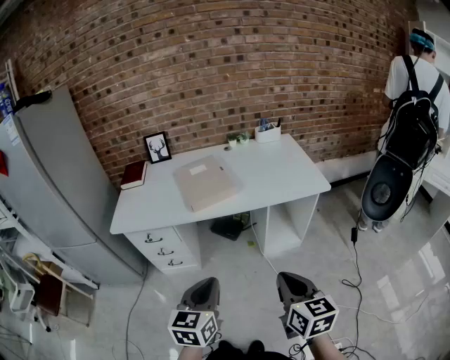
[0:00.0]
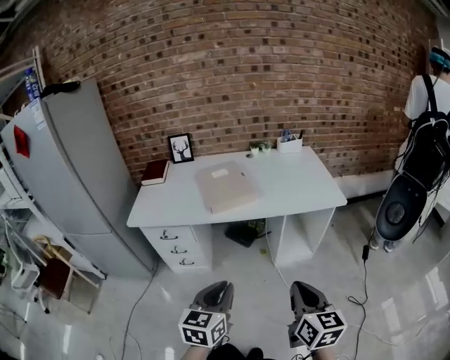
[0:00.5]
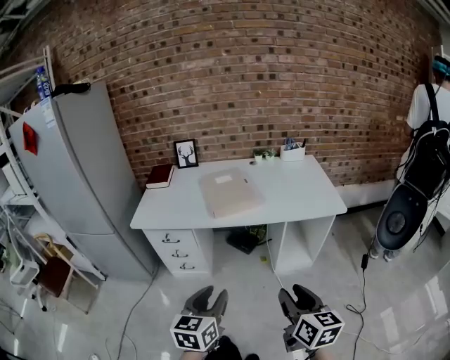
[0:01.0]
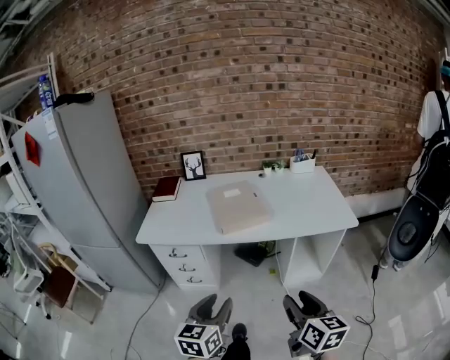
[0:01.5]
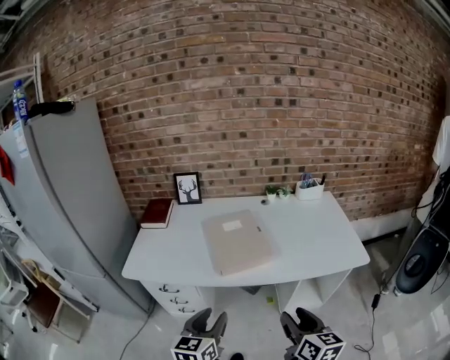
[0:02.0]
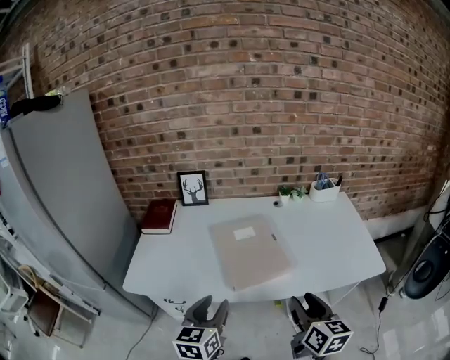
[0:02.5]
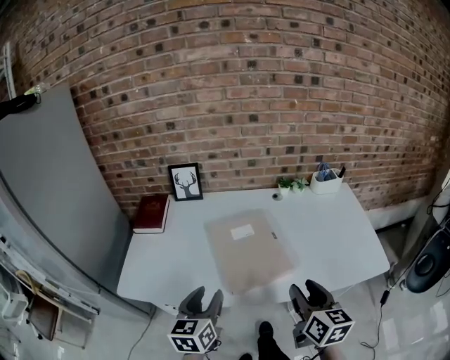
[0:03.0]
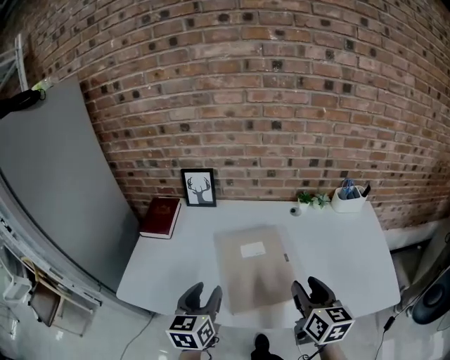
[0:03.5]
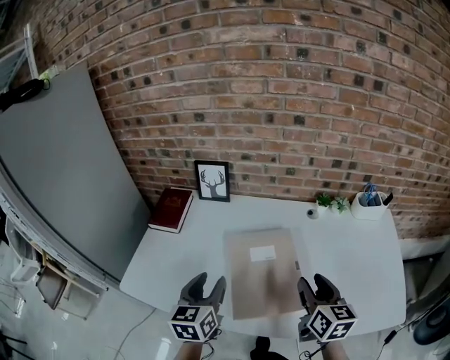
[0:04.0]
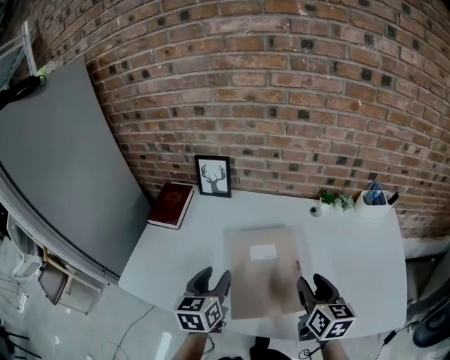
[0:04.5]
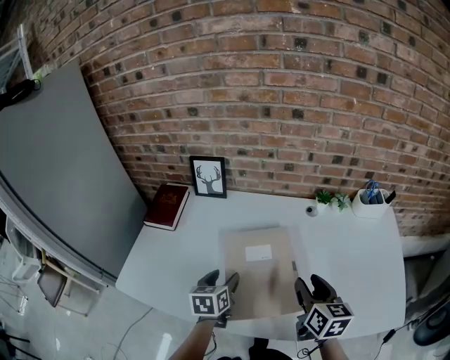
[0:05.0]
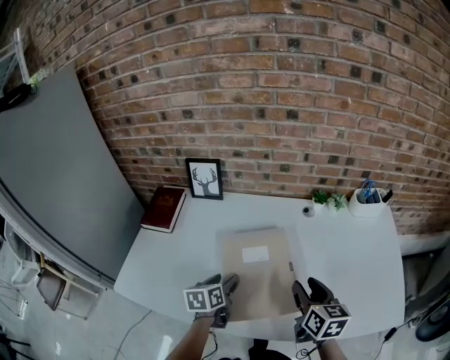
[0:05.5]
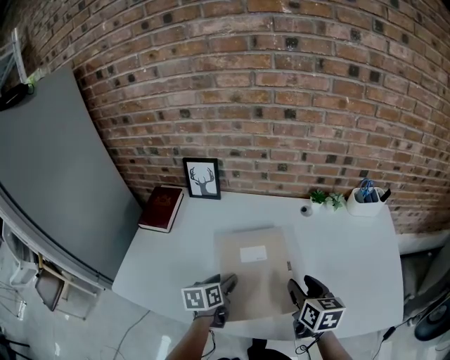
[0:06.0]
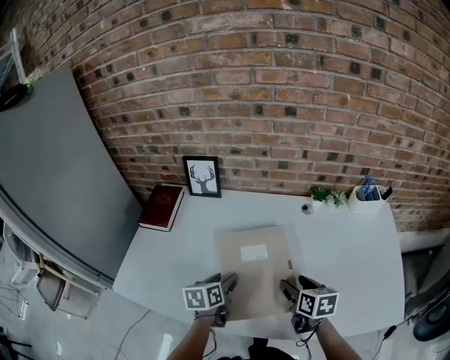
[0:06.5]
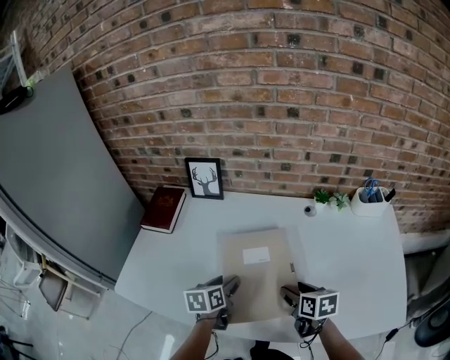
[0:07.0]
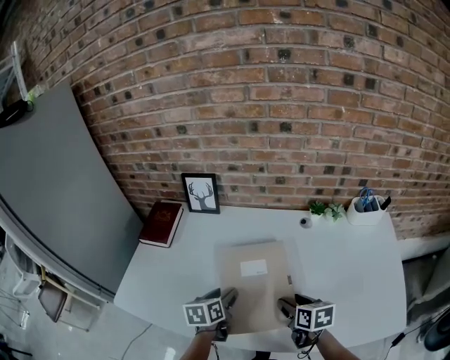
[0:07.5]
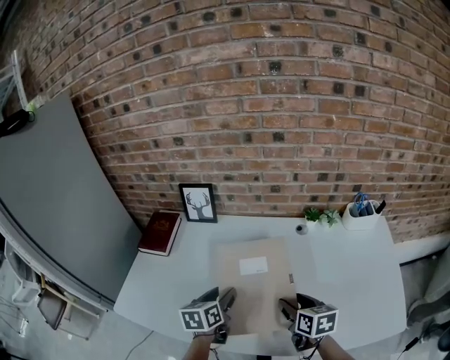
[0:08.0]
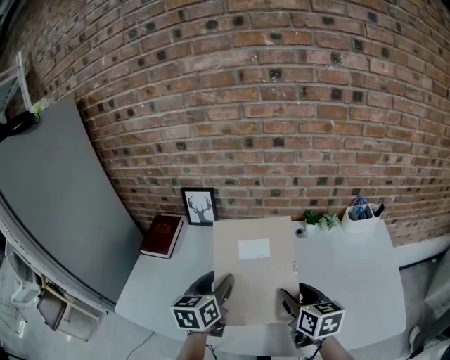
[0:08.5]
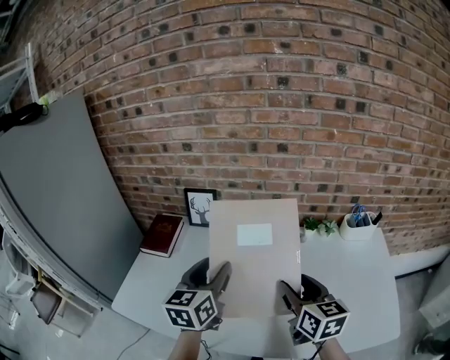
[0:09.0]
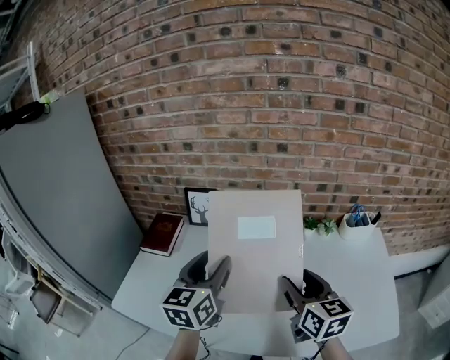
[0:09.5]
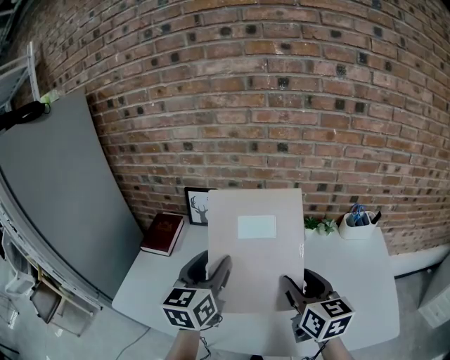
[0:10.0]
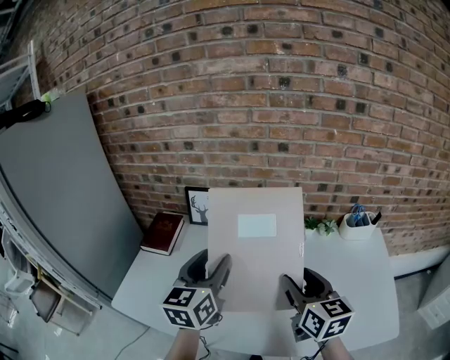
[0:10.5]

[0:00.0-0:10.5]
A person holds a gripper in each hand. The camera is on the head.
0:00.0 to 0:02.0: The right gripper heads forward, covering approximately 20 cm, and opens. Meanwhile the left gripper is displaced forward and to the left by about 20 cm, and opens.
0:02.0 to 0:04.0: The grippers both shift forward by about 35 cm.
0:04.0 to 0:06.5: Both grippers travel together downward, about 15 cm. The left gripper rotates roughly 30 degrees. Meanwhile the right gripper turns by approximately 20 degrees.
0:06.5 to 0:08.5: The grippers both shift upward by approximately 15 cm. The left gripper swivels about 20 degrees.
0:08.5 to 0:10.5: The two grippers go approximately 10 cm upward.

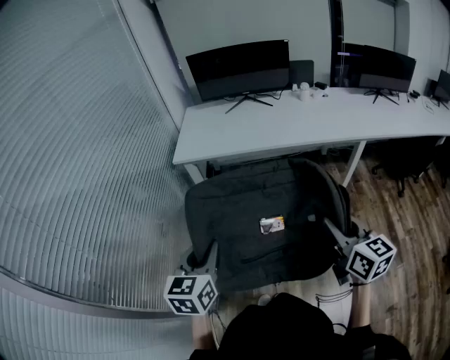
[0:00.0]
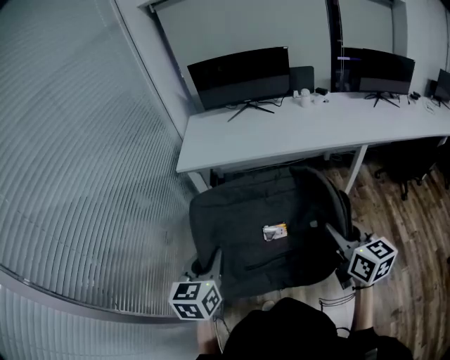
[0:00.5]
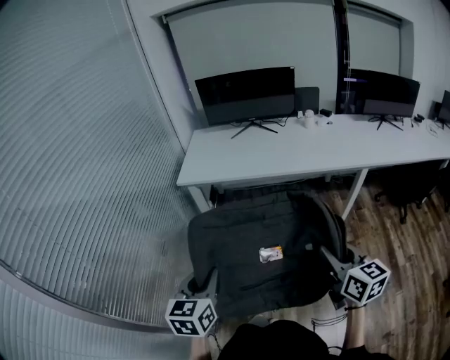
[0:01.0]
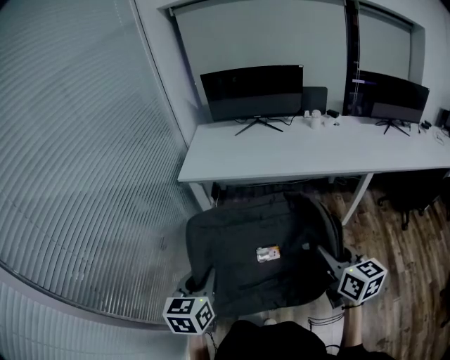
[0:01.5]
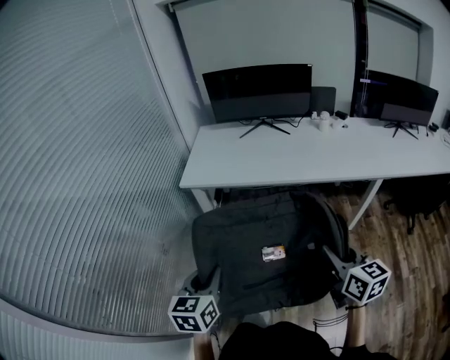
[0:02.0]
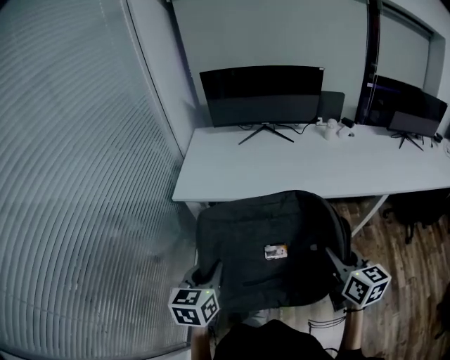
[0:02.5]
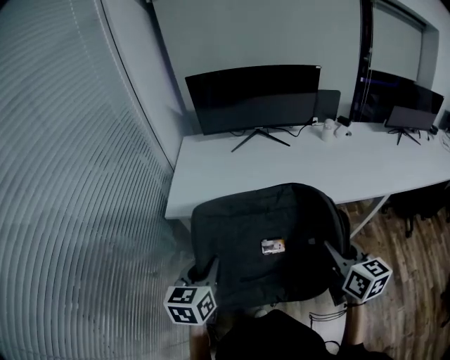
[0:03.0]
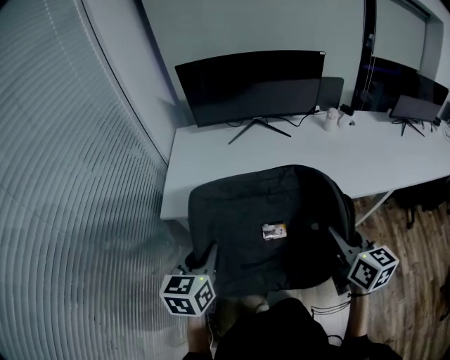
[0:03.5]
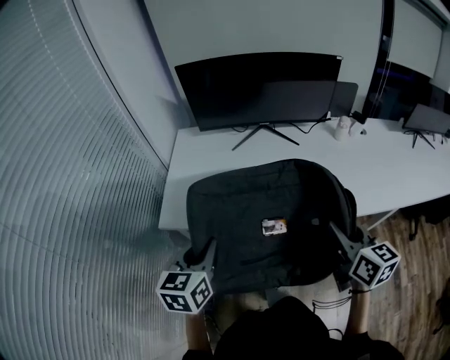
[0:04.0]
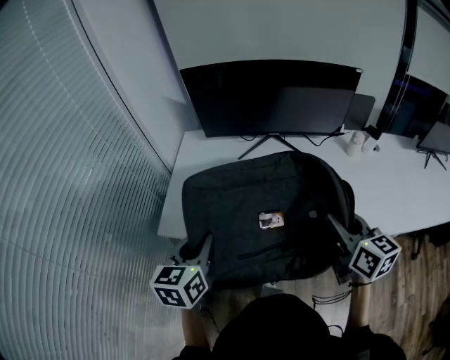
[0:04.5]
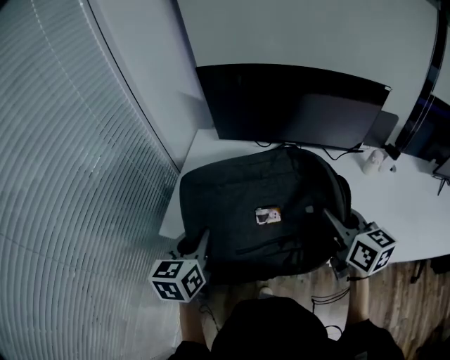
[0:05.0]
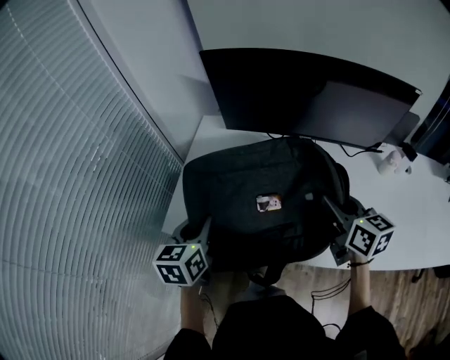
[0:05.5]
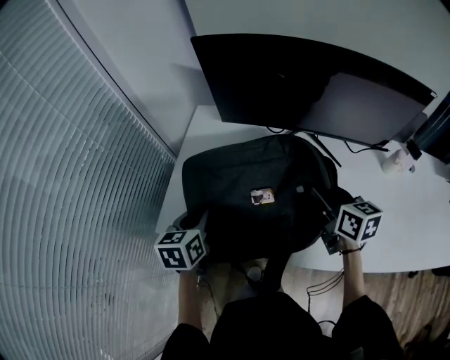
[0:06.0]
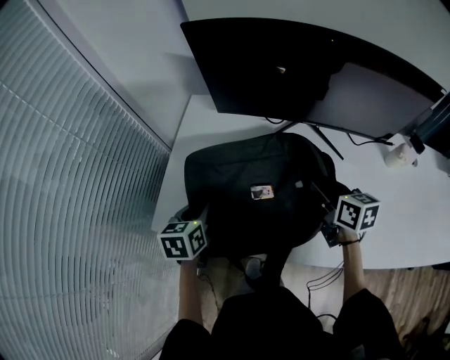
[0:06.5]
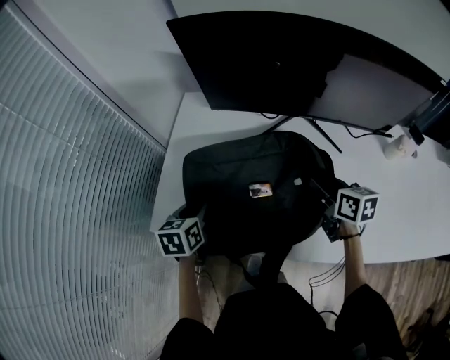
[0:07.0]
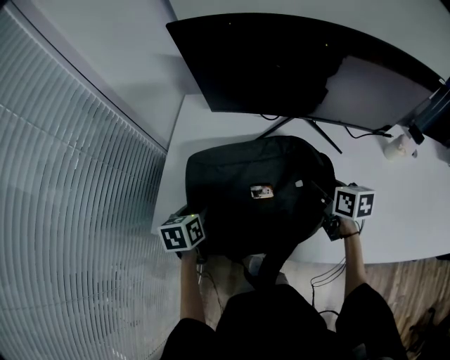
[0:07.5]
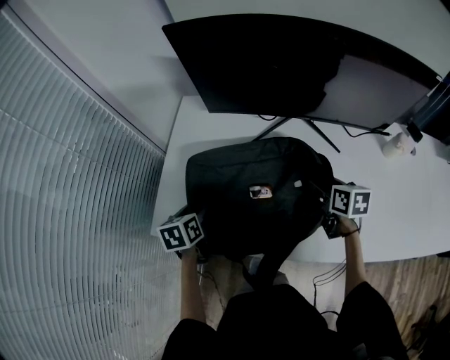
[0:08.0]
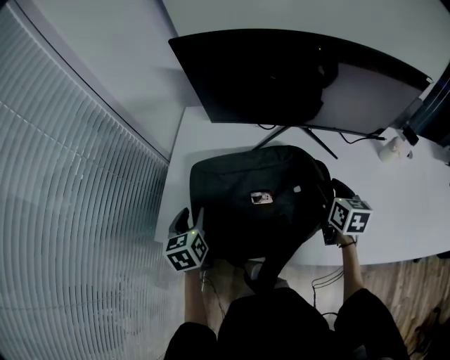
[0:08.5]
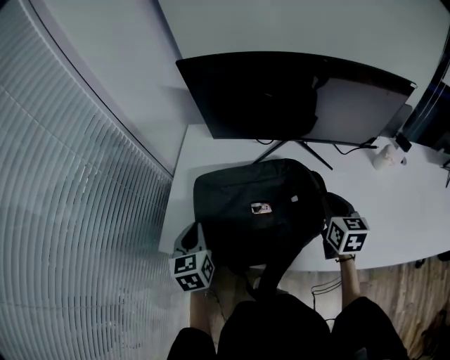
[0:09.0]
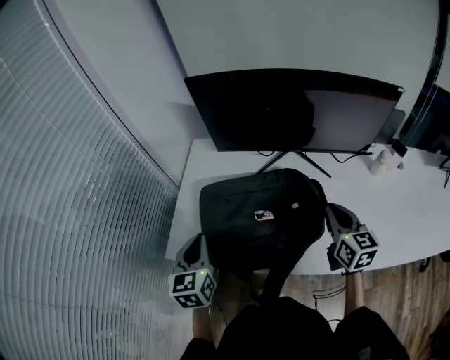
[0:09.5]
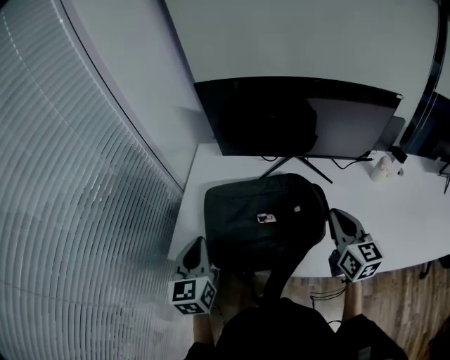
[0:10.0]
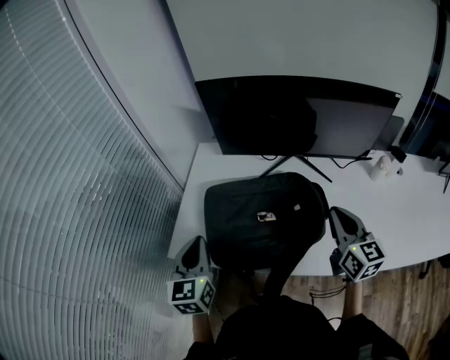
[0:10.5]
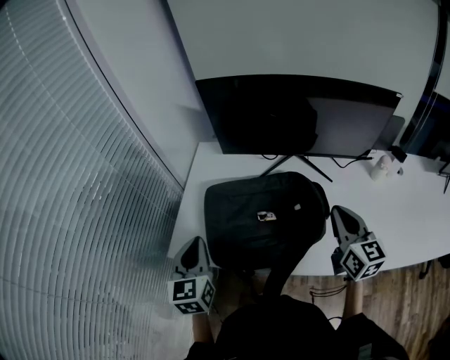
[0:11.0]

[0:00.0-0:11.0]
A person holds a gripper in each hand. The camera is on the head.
0:00.0 to 0:02.0: Both grippers move forward, about 10 cm.
0:02.0 to 0:03.5: The grippers both shift forward by approximately 30 cm.
0:03.5 to 0:05.5: The two grippers go roughly 35 cm forward.
0:05.5 to 0:07.5: Both grippers travel together downward and forward, some 20 cm. The left gripper opens up. Meanwhile the right gripper changes its angle by roughly 20 degrees.
0:07.5 to 0:09.0: The two grippers go about 10 cm upward. The left gripper rotates approximately 30 degrees, and closes; the right gripper turns by roughly 30 degrees, and opens and closes again.
0:09.0 to 0:11.0: The grippers both shift upward and backward by roughly 10 cm. The right gripper changes its angle by approximately 20 degrees.

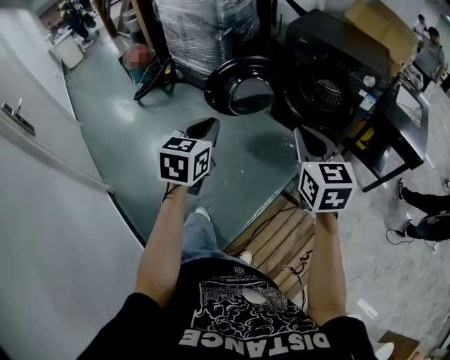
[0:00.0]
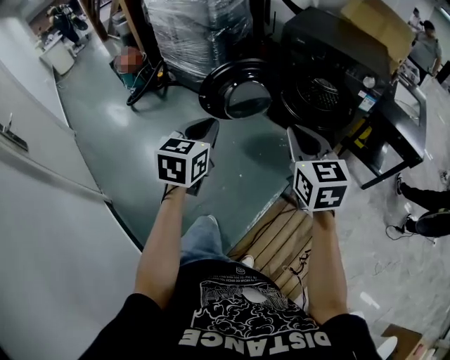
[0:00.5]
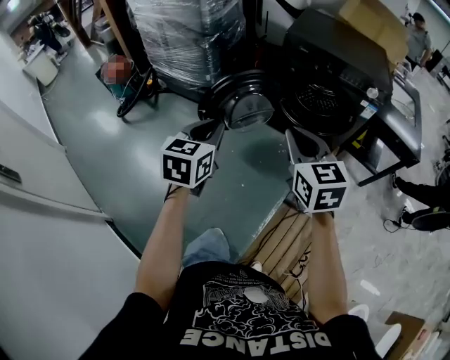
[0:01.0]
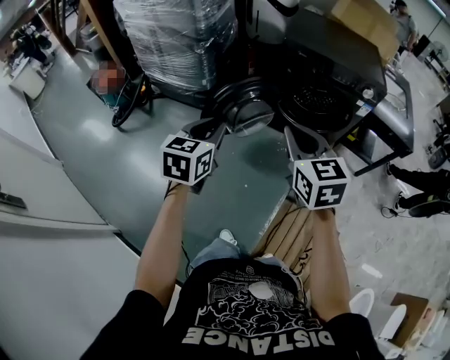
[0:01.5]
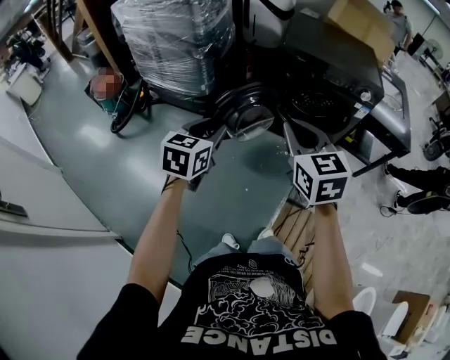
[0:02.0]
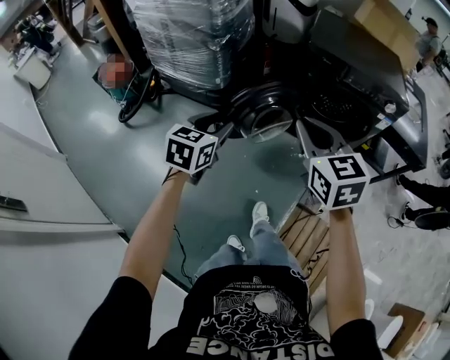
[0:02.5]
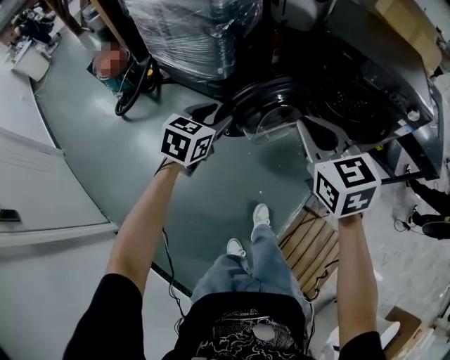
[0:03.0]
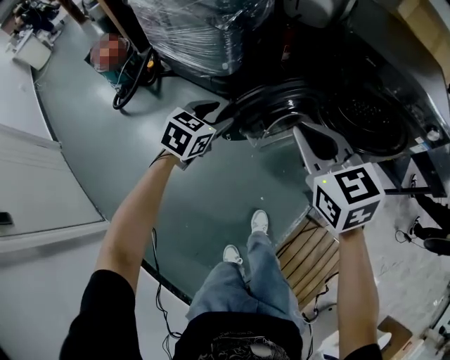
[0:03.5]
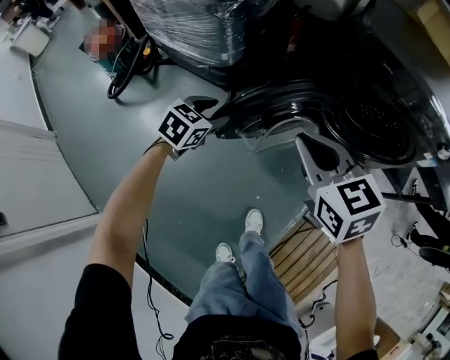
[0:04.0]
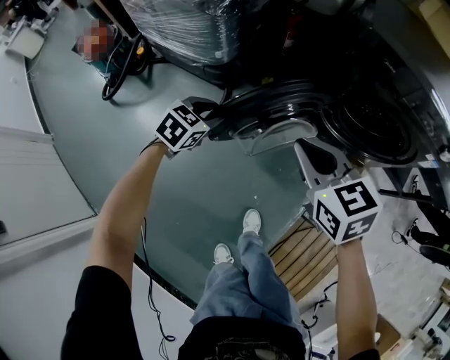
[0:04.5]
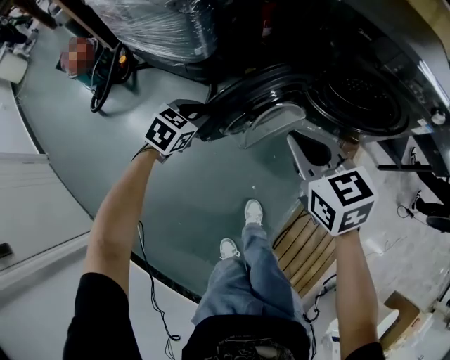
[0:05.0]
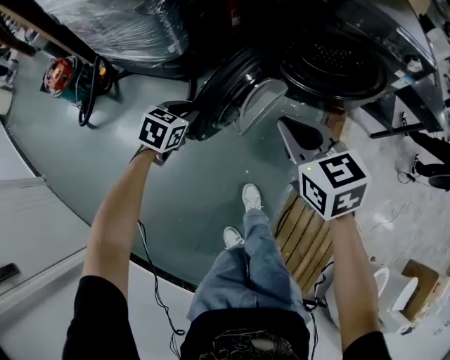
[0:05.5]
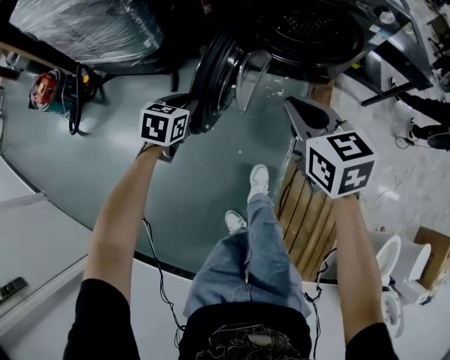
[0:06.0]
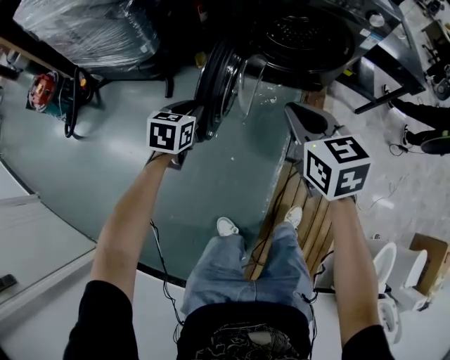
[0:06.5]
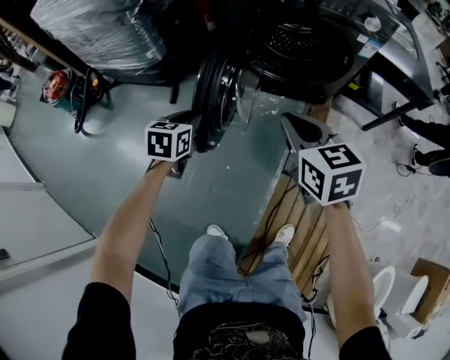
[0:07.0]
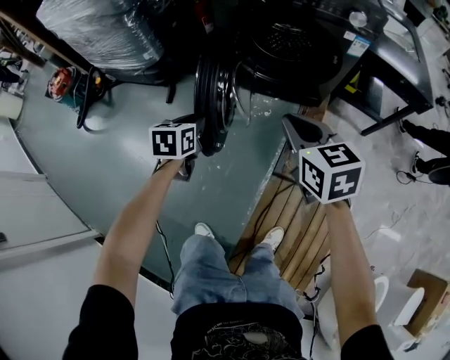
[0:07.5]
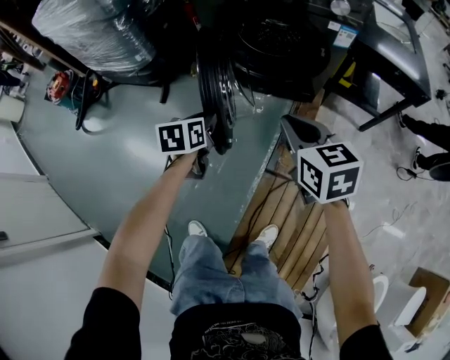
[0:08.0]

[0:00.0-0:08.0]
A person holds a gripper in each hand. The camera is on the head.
0:00.0 to 0:02.0: The right gripper travels to the left, forward and upward by approximately 25 cm, while the left gripper moves forward and to the left, roughly 25 cm, and changes its angle by about 20 degrees.
0:02.0 to 0:04.0: The left gripper heads downward and forward, covering about 40 cm, and changes its angle by about 20 degrees. Meanwhile the right gripper moves forward and downward, about 30 cm, and turns by some 20 degrees.
0:04.0 to 0:06.0: The two grippers go approximately 15 cm to the right and backward. The right gripper changes its angle by about 20 degrees.
0:06.0 to 0:08.0: Both grippers travel together to the right, about 25 cm. The left gripper turns by about 30 degrees.
